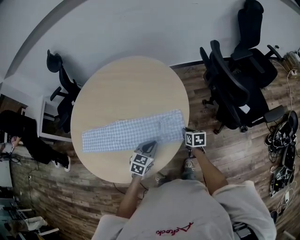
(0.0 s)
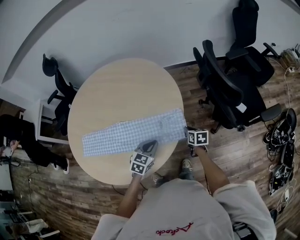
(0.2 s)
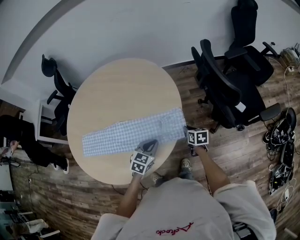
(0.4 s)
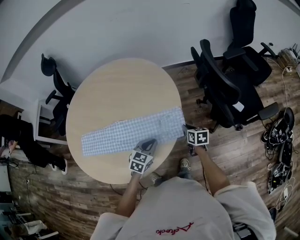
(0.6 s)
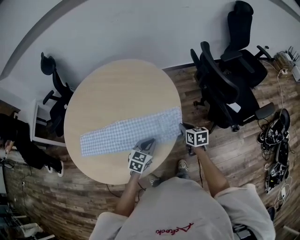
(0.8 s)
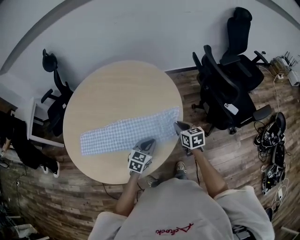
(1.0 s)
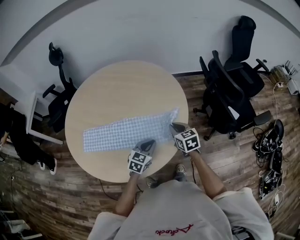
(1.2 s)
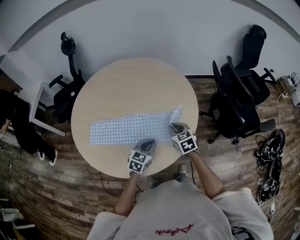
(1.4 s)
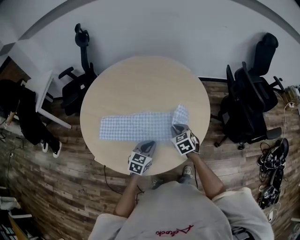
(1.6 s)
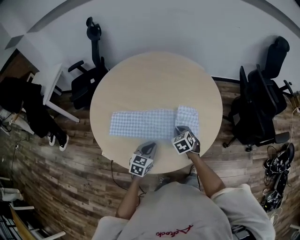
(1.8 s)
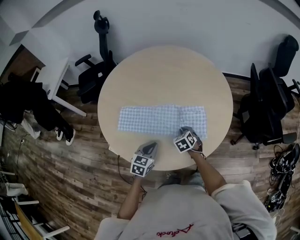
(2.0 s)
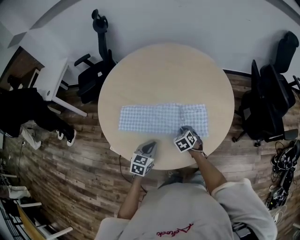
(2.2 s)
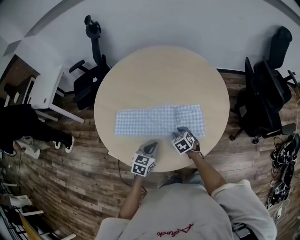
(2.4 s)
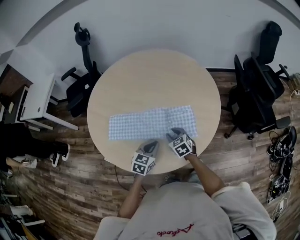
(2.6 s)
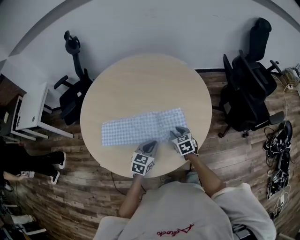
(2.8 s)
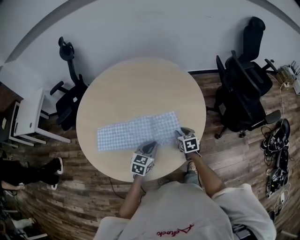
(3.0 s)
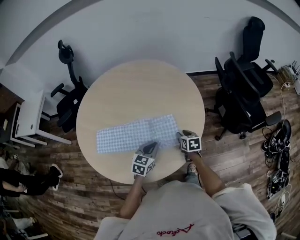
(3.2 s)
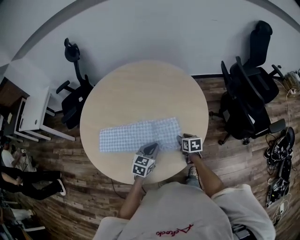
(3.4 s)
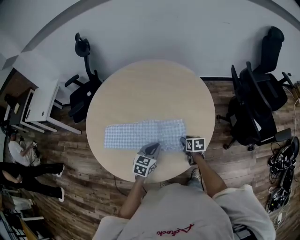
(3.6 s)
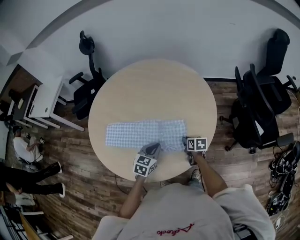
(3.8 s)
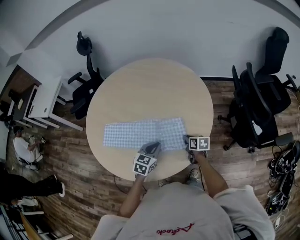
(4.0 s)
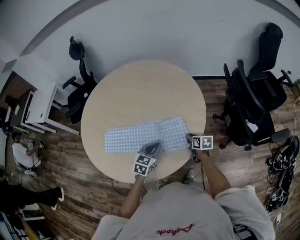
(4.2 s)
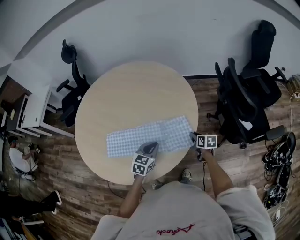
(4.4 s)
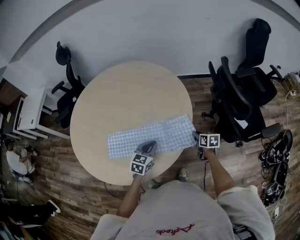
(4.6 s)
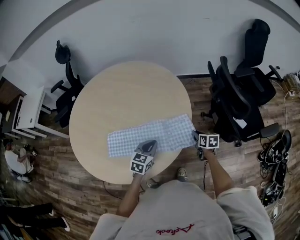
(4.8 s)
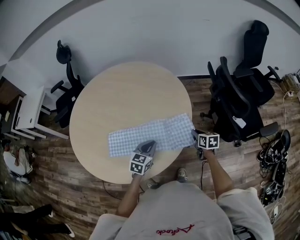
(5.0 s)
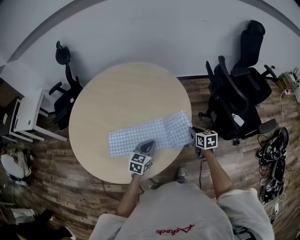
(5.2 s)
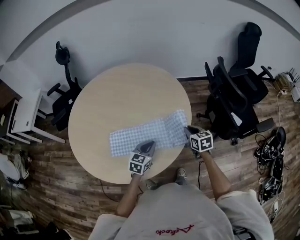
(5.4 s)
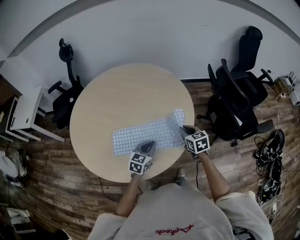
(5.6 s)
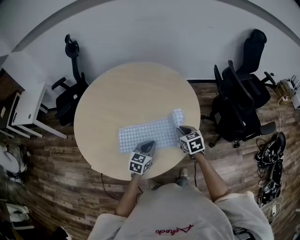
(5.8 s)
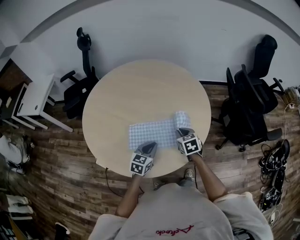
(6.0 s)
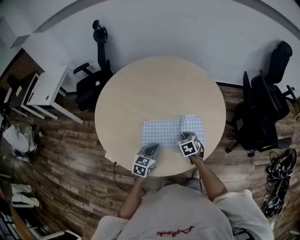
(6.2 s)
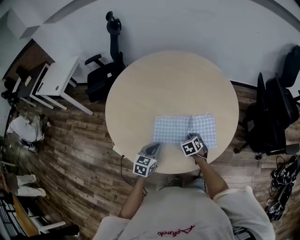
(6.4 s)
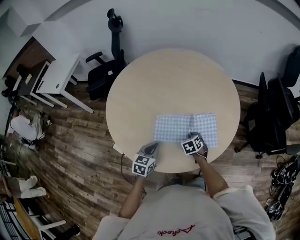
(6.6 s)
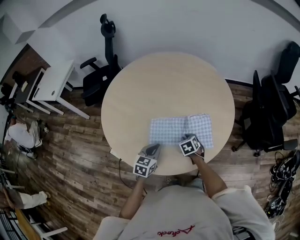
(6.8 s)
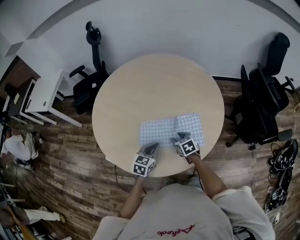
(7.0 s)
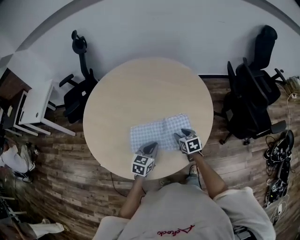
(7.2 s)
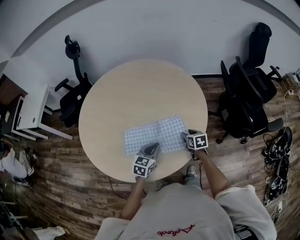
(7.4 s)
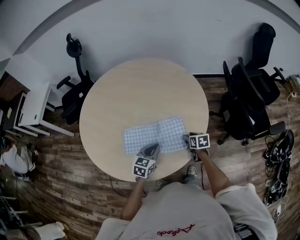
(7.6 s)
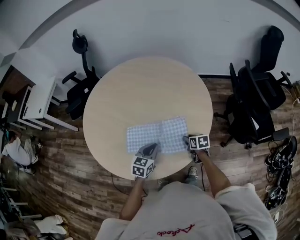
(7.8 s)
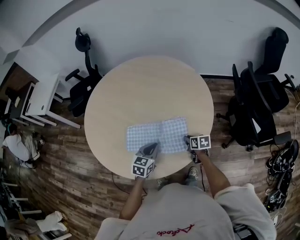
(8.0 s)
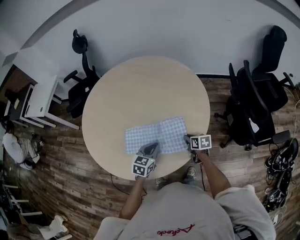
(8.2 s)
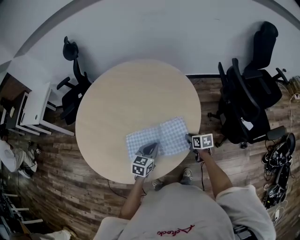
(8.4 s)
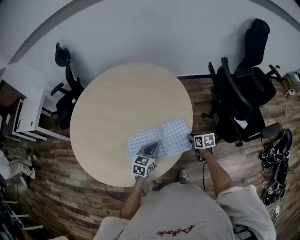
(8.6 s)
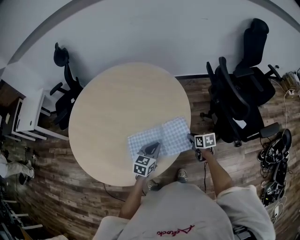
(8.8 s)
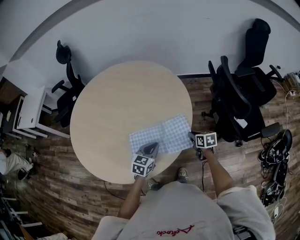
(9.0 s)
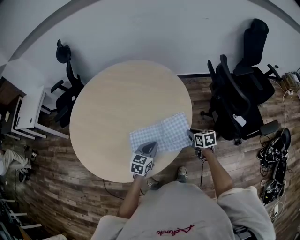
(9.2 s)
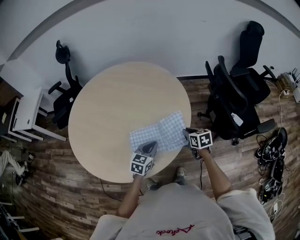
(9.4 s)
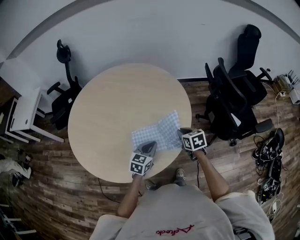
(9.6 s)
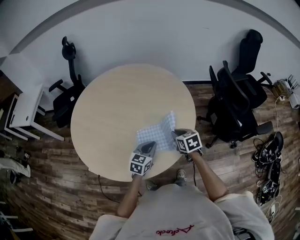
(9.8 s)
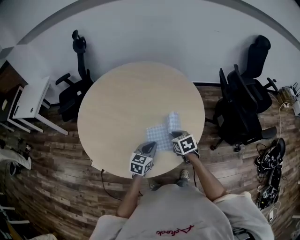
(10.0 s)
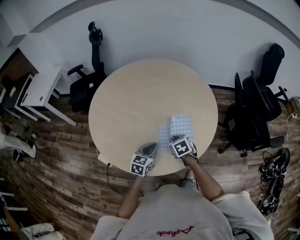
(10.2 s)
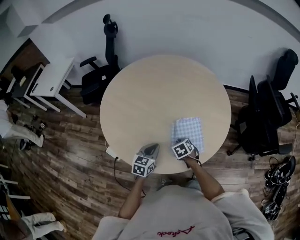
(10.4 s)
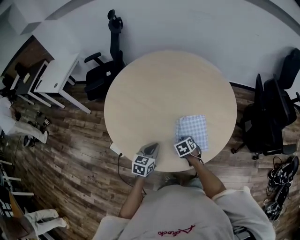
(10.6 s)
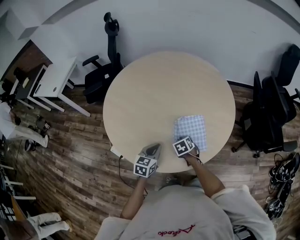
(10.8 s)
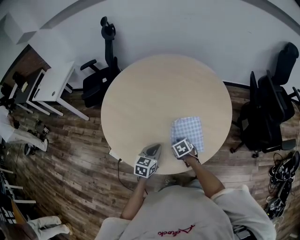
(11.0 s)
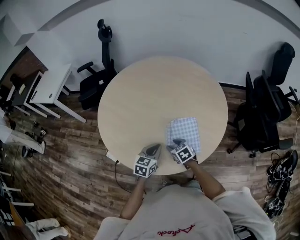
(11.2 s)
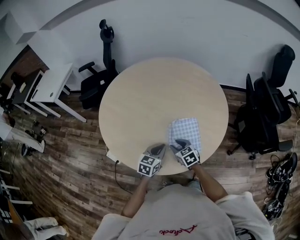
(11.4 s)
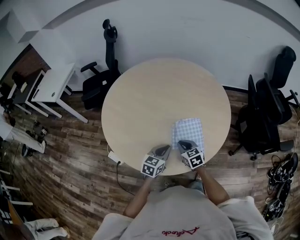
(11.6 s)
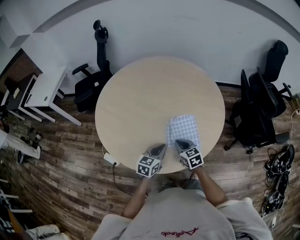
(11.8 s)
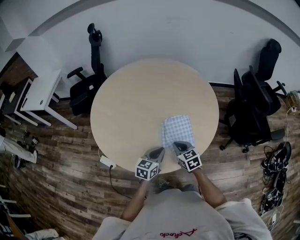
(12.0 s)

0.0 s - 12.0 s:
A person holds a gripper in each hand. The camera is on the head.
0.0 s - 1.6 s: The right gripper is displaced to the left and upward by some 25 cm, and rolls counterclockwise, seen from behind, by some 50 degrees. The left gripper shifts about 15 cm to the left and backward.
1.6 s - 3.0 s: The right gripper is displaced downward by approximately 5 cm, moves about 10 cm to the left and comes back, turns by roughly 30 degrees, and opens; the left gripper moves some 10 cm to the left and comes back.
3.0 s - 4.4 s: The right gripper goes approximately 15 cm to the right, rotates some 20 degrees, and closes its fingers. The left gripper heads to the right, covering roughly 10 cm.
4.4 s - 6.0 s: The right gripper is displaced to the left and upward by roughly 20 cm, and rotates about 30 degrees, while the left gripper shifts roughly 15 cm to the left and backward.
6.0 s - 7.6 s: The right gripper shifts some 15 cm downward and to the right, rotates roughly 30 degrees, and opens up, while the left gripper reaches roughly 15 cm to the left, then returns.
7.6 s - 9.0 s: The grippers both shift to the right by about 15 cm. The right gripper closes.
9.0 s - 10.4 s: The two grippers go roughly 30 cm to the left. The right gripper turns by roughly 40 degrees.
10.4 s - 12.0 s: The left gripper is displaced to the right by roughly 5 cm, while the right gripper heads upward, covering about 10 cm, turns by about 30 degrees, and opens and closes again.

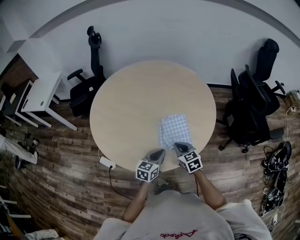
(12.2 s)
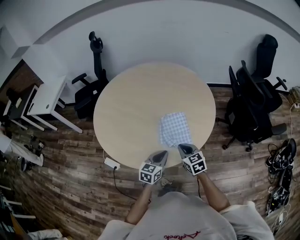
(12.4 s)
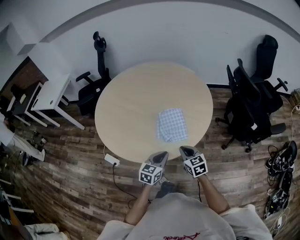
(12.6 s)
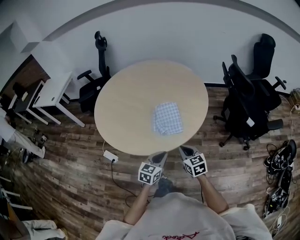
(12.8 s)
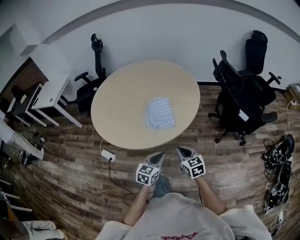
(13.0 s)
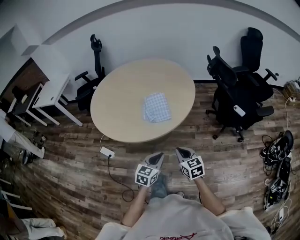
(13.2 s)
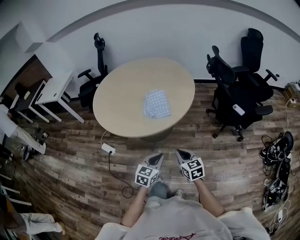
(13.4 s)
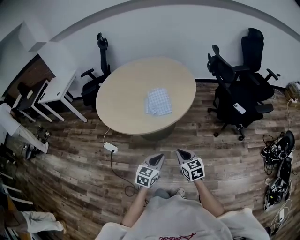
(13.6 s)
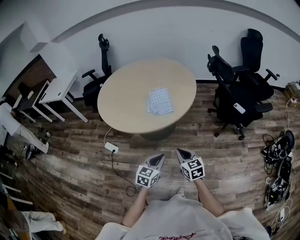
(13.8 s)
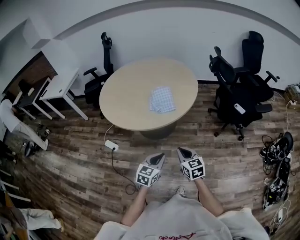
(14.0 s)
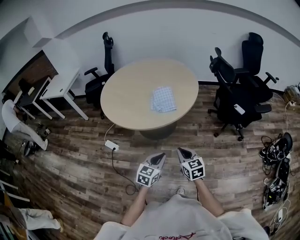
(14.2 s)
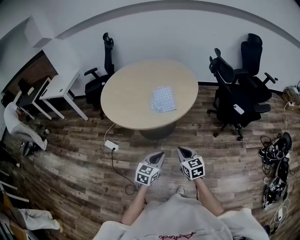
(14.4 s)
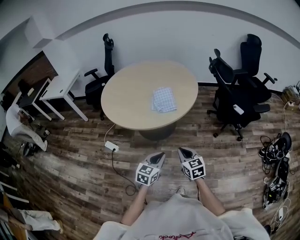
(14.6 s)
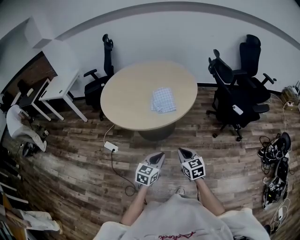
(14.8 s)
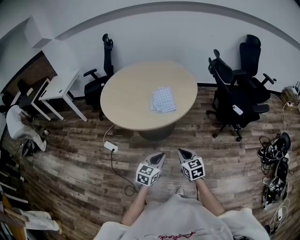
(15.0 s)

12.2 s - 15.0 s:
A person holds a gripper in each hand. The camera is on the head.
12.2 s - 13.6 s: The grippers both shift backward and to the right by roughly 35 cm.
13.6 s - 15.0 s: The two grippers go some 5 cm backward.

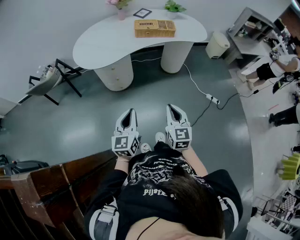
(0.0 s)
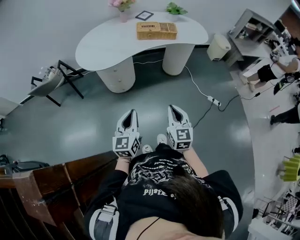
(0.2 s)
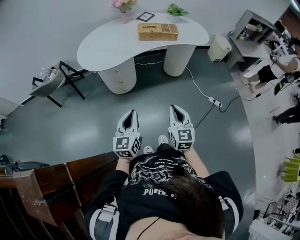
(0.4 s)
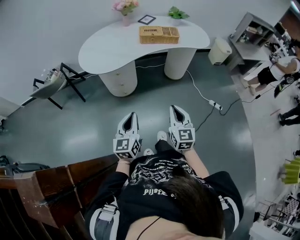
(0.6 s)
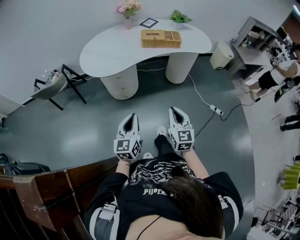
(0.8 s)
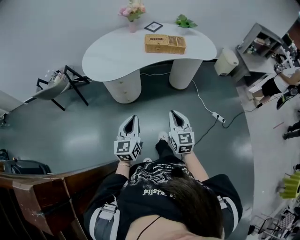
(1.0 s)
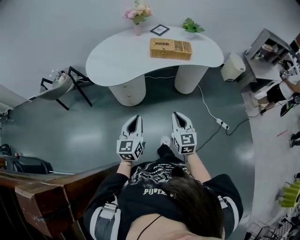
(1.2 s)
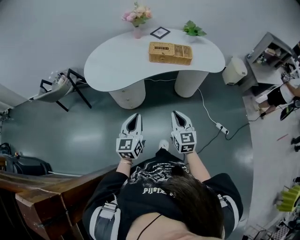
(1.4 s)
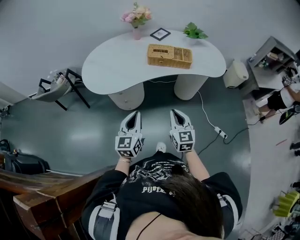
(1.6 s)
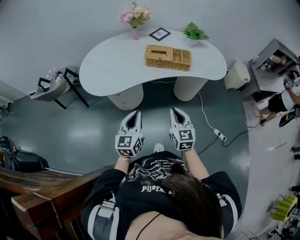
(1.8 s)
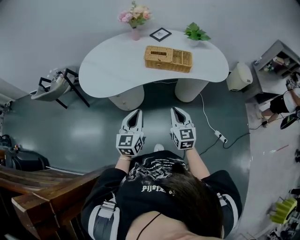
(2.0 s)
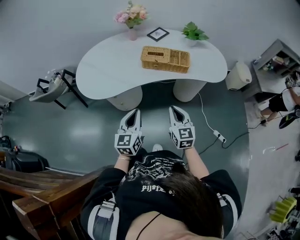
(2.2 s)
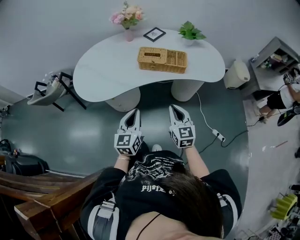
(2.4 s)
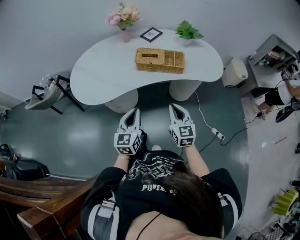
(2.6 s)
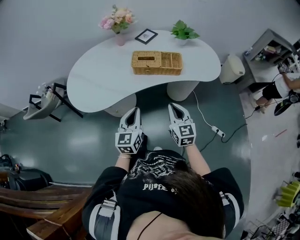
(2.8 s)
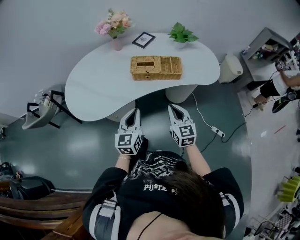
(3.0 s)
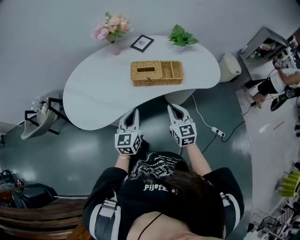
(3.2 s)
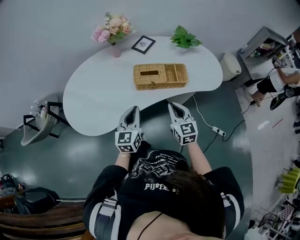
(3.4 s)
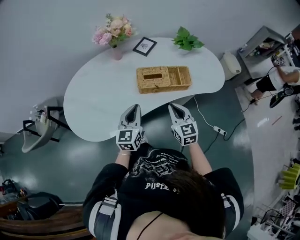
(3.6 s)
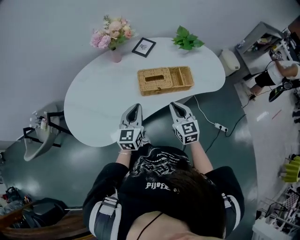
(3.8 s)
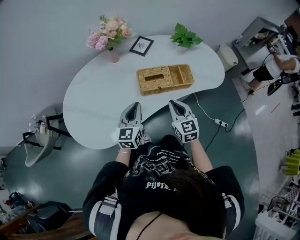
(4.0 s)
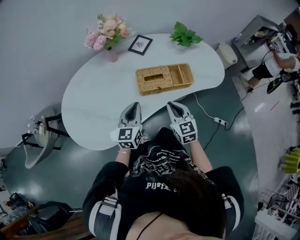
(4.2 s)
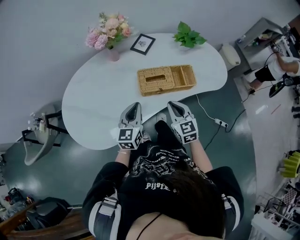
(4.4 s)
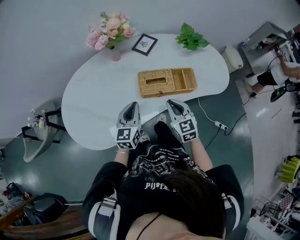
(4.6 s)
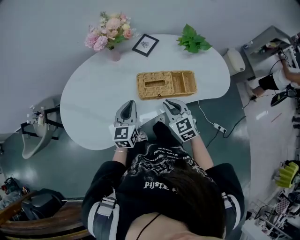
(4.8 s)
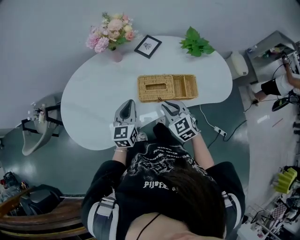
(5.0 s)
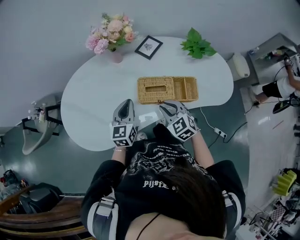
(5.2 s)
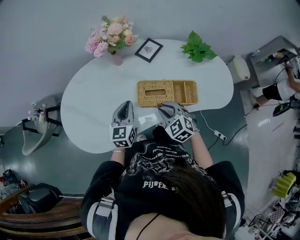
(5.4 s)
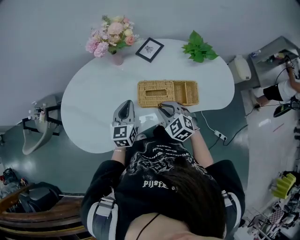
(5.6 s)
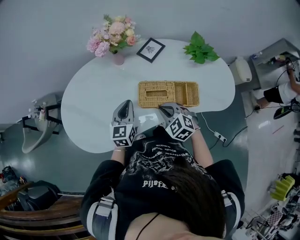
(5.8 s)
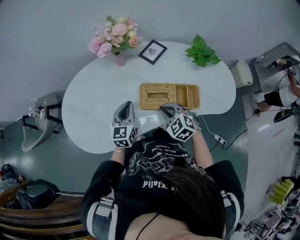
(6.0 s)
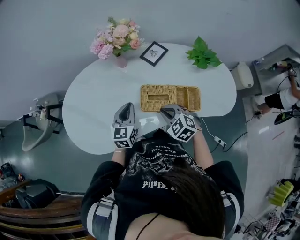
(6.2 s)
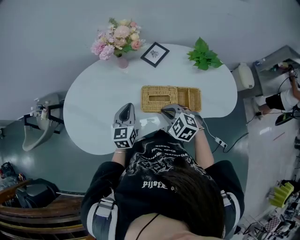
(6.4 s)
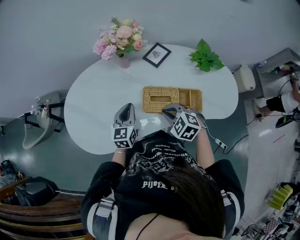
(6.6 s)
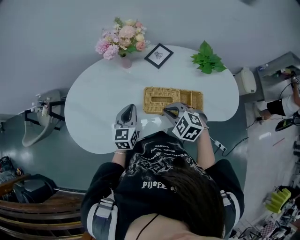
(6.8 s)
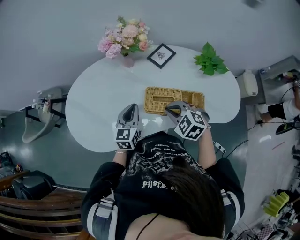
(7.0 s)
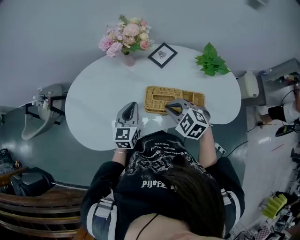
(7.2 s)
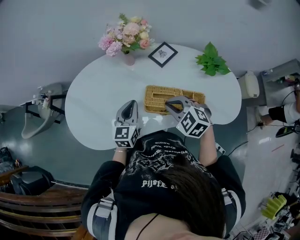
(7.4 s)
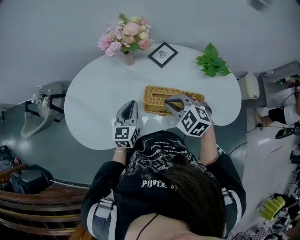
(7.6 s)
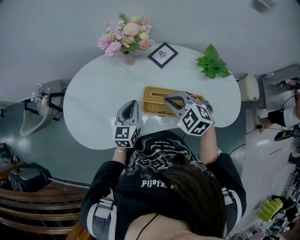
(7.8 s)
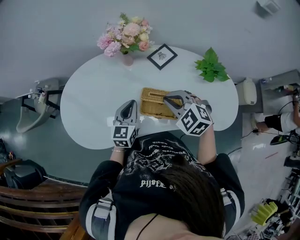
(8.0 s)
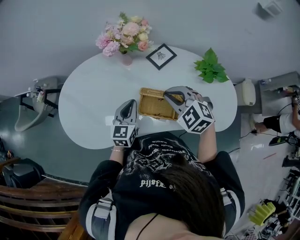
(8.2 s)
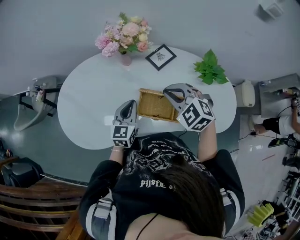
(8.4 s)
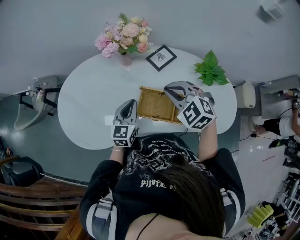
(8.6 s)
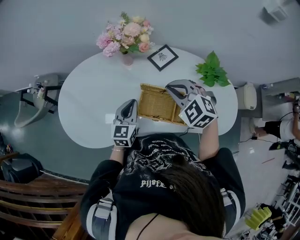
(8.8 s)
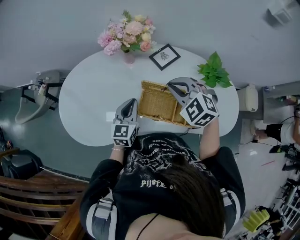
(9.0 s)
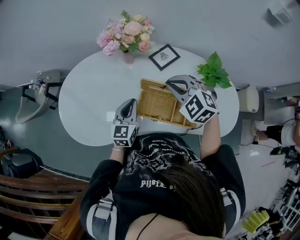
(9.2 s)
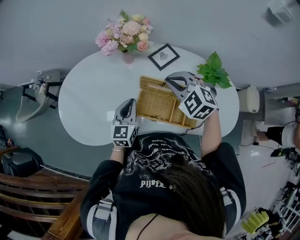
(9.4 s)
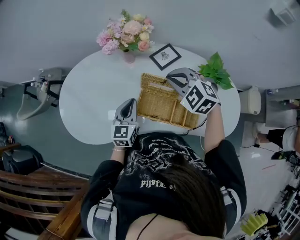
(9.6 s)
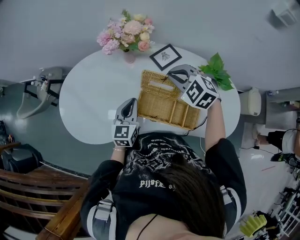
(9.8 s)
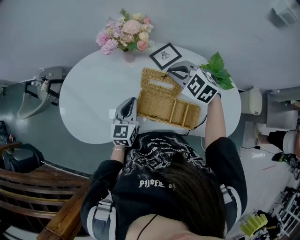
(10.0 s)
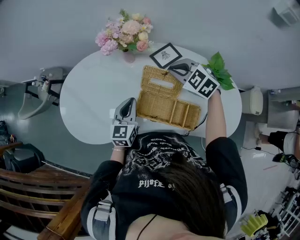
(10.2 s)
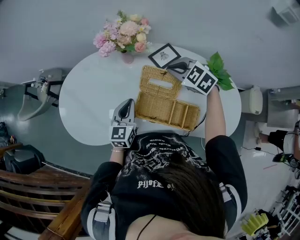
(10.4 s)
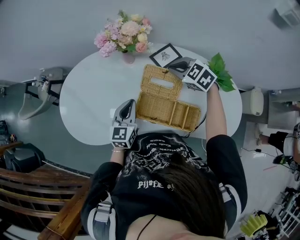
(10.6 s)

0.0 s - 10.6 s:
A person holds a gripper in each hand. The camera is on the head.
0.0 s - 1.6 s: Both grippers travel together forward, roughly 25 cm.
1.6 s - 3.0 s: The grippers both shift forward by some 20 cm.
3.0 s - 4.6 s: Both grippers travel together forward and to the left, approximately 20 cm.
4.6 s - 6.0 s: The grippers both shift forward by approximately 5 cm. The right gripper turns by approximately 40 degrees.
6.0 s - 7.6 s: The right gripper goes some 5 cm upward.
7.6 s - 9.0 s: The right gripper moves forward, approximately 10 cm.
9.0 s - 10.6 s: The right gripper is displaced forward, downward and to the right by approximately 15 cm.
